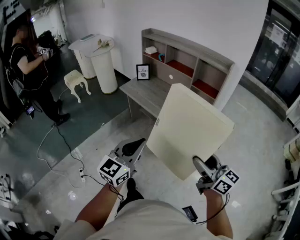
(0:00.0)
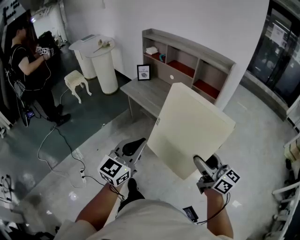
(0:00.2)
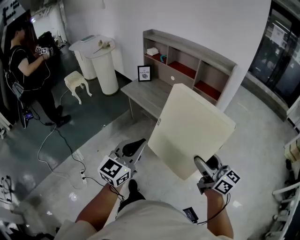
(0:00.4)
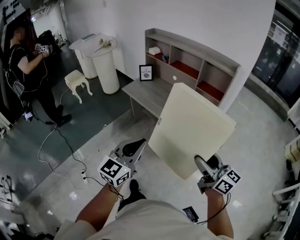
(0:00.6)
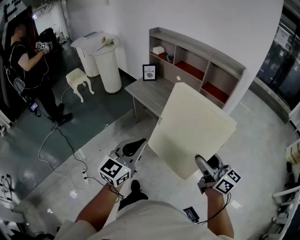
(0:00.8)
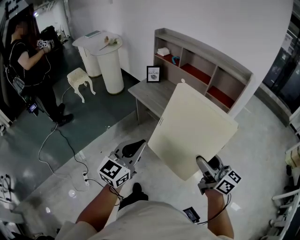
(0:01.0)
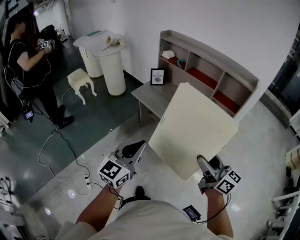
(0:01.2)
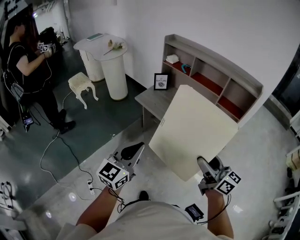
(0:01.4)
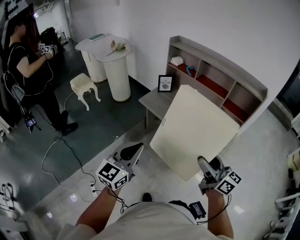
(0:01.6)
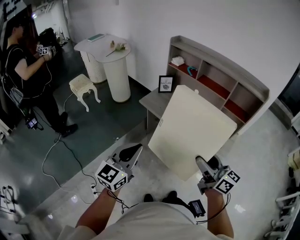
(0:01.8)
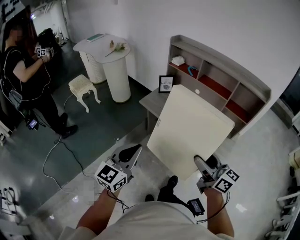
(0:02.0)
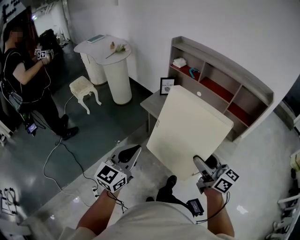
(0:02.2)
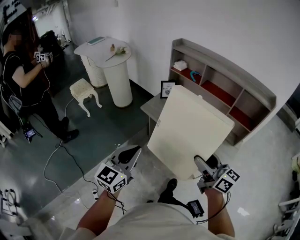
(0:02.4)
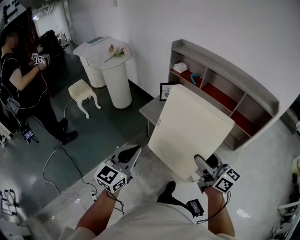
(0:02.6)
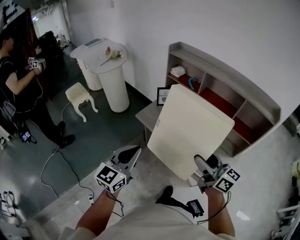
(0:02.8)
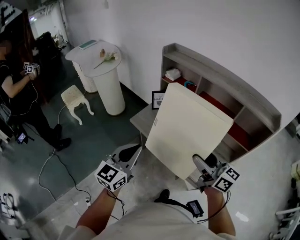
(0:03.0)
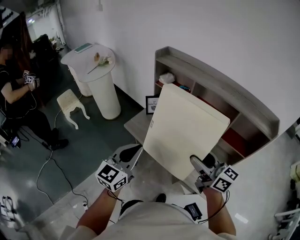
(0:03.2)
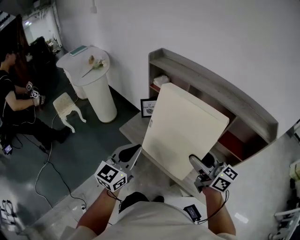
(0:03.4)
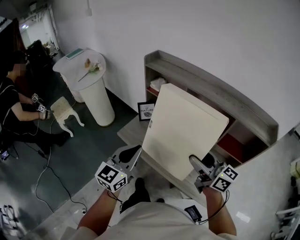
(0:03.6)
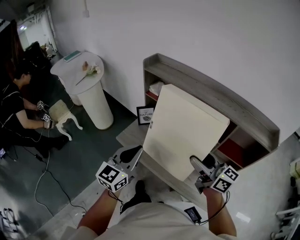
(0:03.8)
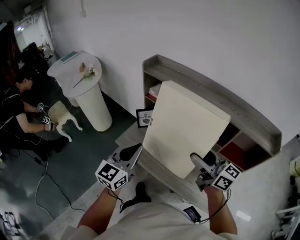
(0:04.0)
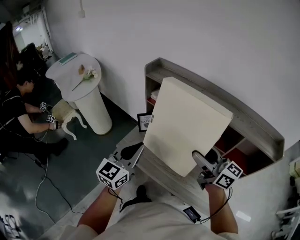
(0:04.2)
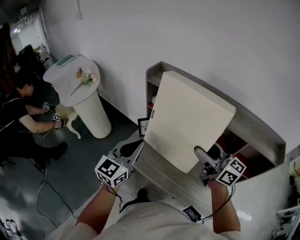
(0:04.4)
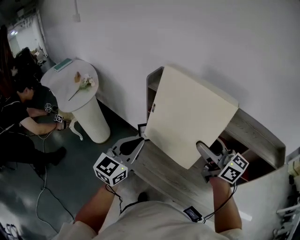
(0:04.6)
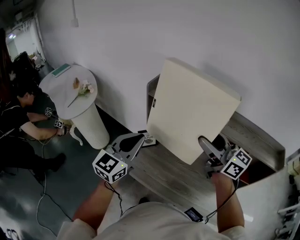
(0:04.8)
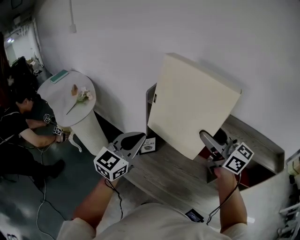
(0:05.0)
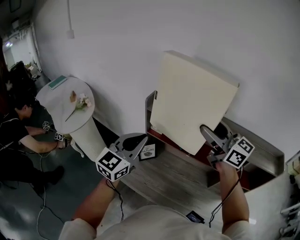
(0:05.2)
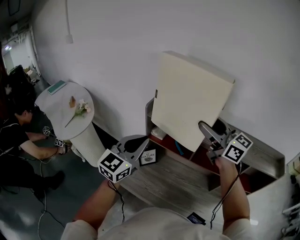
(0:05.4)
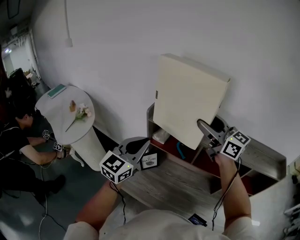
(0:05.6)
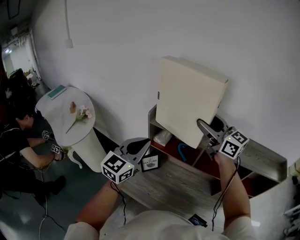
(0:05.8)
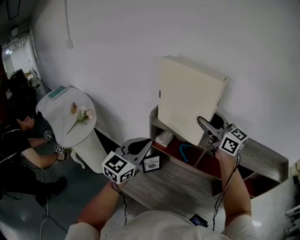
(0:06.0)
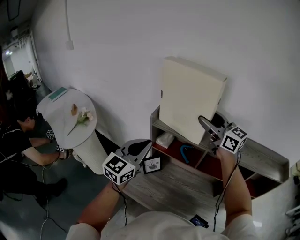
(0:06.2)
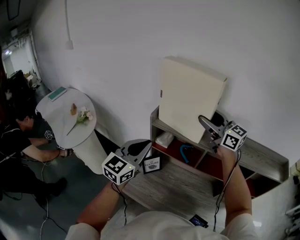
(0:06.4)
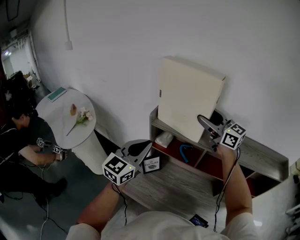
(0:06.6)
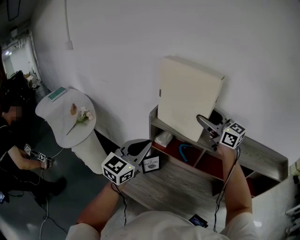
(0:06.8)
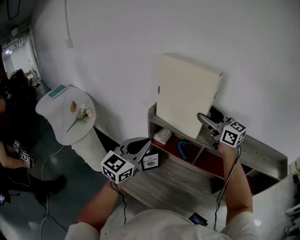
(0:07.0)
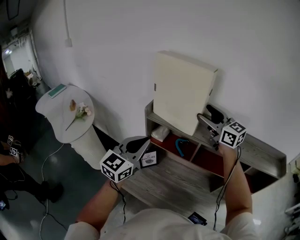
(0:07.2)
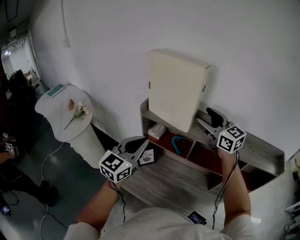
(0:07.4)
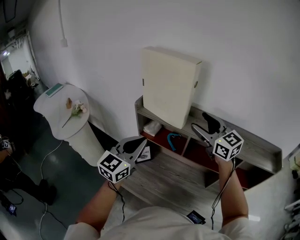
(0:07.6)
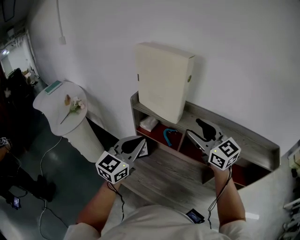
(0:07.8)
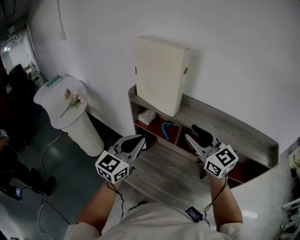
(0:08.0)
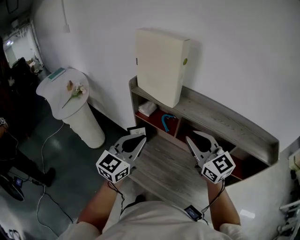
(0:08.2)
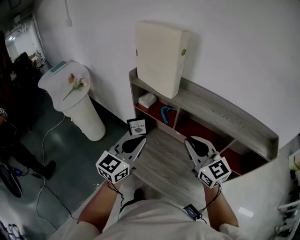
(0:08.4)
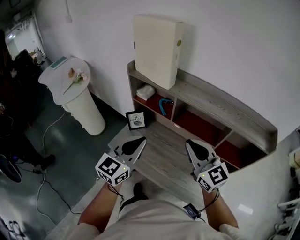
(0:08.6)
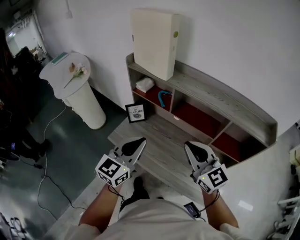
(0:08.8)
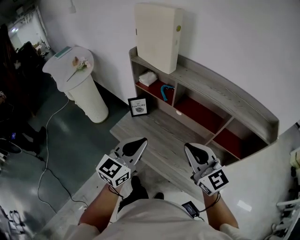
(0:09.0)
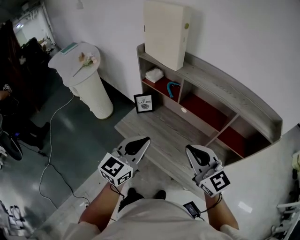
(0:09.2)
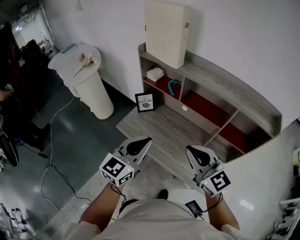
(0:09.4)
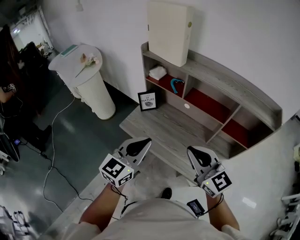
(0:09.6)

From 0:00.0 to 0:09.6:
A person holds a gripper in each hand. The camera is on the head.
From 0:00.0 to 0:01.6: Both grippers move to the left and forward, roughly 30 cm.
From 0:01.6 to 0:03.2: The two grippers go roughly 30 cm forward.
From 0:03.2 to 0:04.8: The left gripper goes roughly 30 cm forward; the right gripper goes about 30 cm forward and upward.
From 0:04.8 to 0:06.4: The right gripper moves forward, some 20 cm; the left gripper heads forward, covering about 10 cm.
From 0:06.4 to 0:08.0: The left gripper is displaced to the right and backward by about 15 cm, while the right gripper heads backward, covering approximately 15 cm, and closes its fingers.
From 0:08.0 to 0:09.6: The grippers both shift backward by roughly 25 cm. The right gripper closes its fingers.

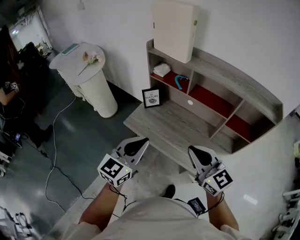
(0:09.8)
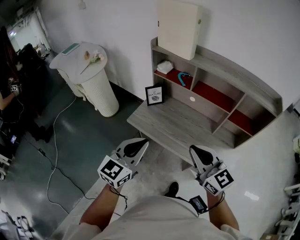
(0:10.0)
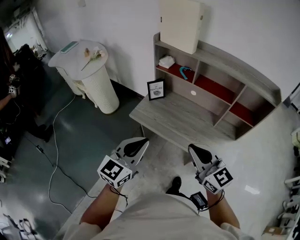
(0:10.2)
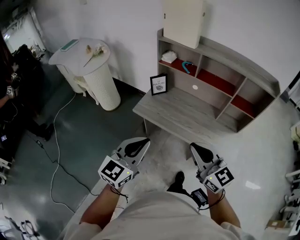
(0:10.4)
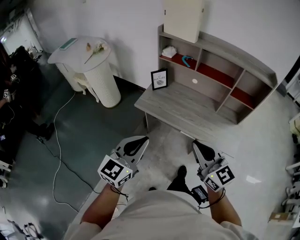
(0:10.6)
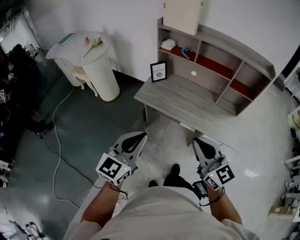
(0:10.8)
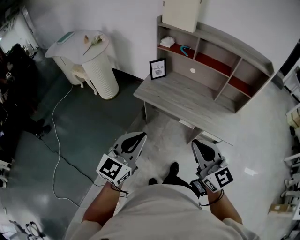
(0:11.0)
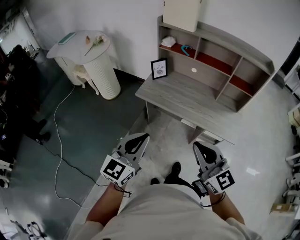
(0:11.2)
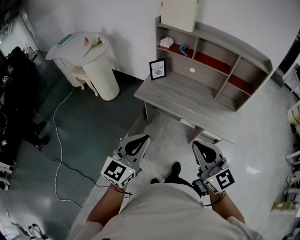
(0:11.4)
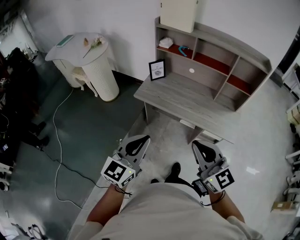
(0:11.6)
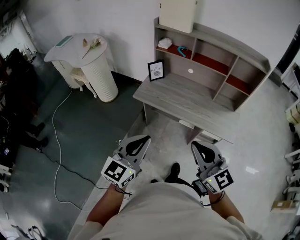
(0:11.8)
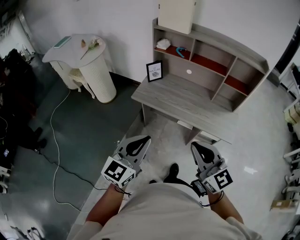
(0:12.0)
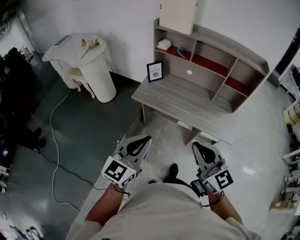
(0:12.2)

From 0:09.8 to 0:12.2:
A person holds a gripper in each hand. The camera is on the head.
From 0:09.8 to 0:11.0: The grippers both shift backward and to the left by about 25 cm.
From 0:11.0 to 0:12.2: The grippers make only small movements.

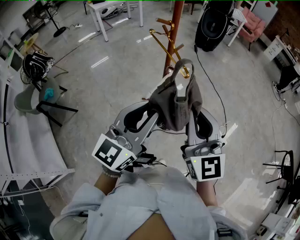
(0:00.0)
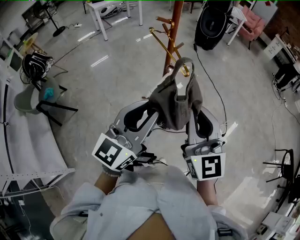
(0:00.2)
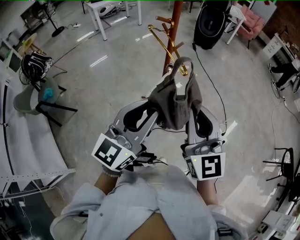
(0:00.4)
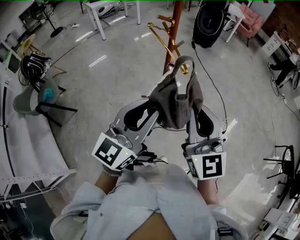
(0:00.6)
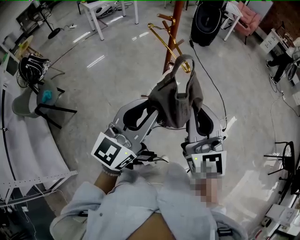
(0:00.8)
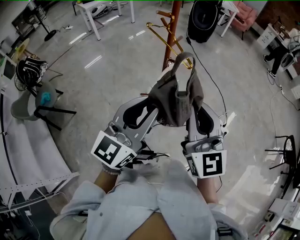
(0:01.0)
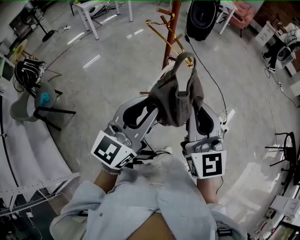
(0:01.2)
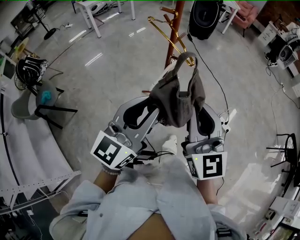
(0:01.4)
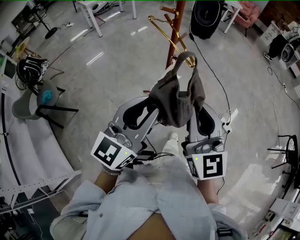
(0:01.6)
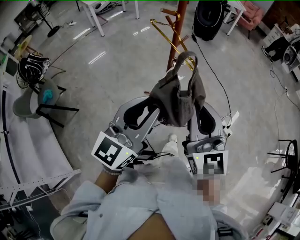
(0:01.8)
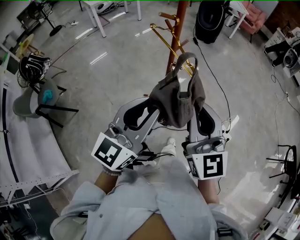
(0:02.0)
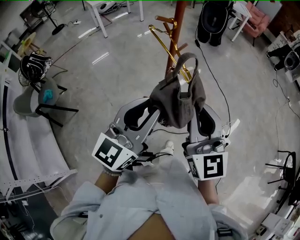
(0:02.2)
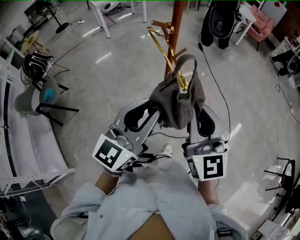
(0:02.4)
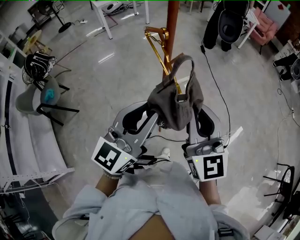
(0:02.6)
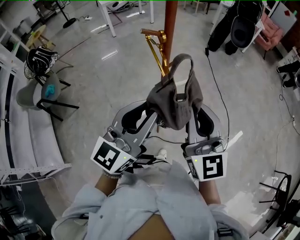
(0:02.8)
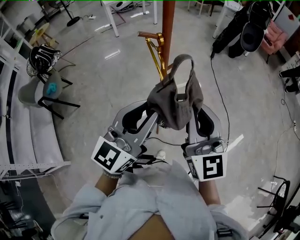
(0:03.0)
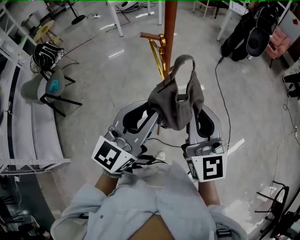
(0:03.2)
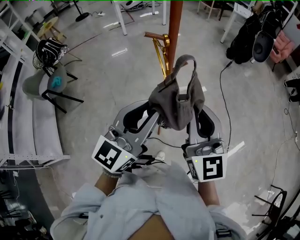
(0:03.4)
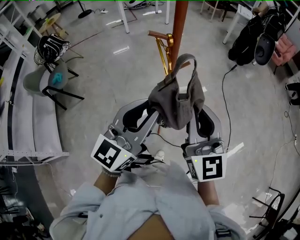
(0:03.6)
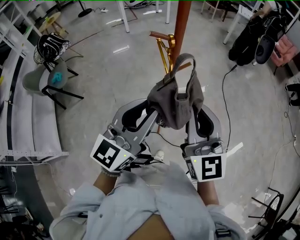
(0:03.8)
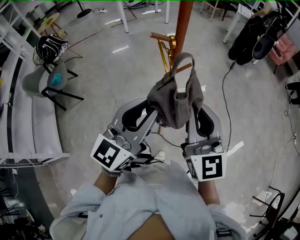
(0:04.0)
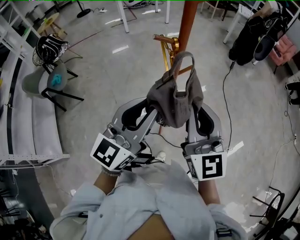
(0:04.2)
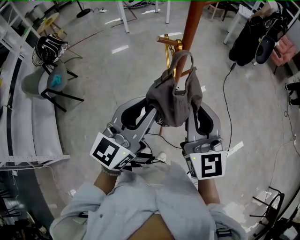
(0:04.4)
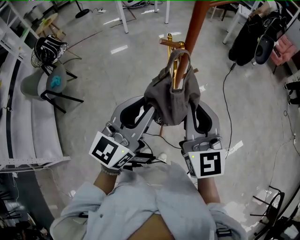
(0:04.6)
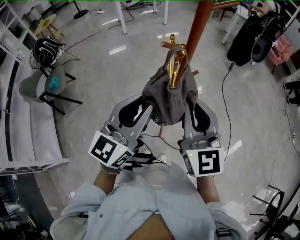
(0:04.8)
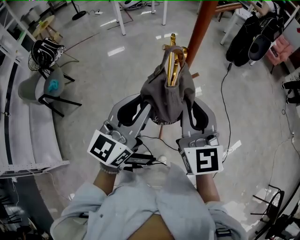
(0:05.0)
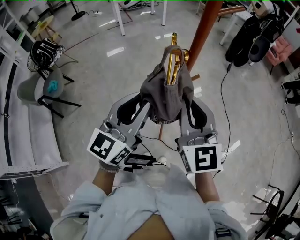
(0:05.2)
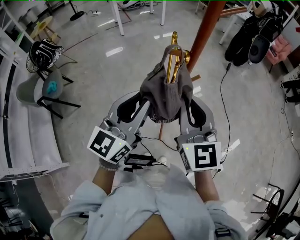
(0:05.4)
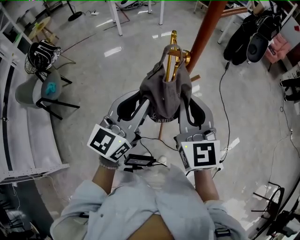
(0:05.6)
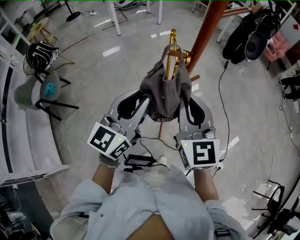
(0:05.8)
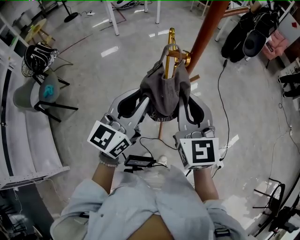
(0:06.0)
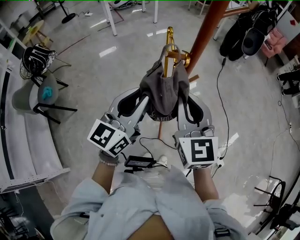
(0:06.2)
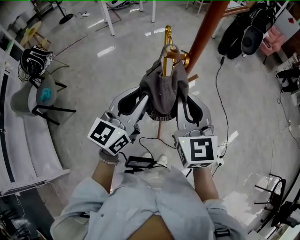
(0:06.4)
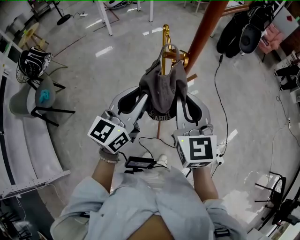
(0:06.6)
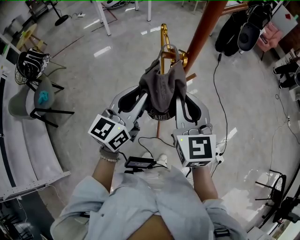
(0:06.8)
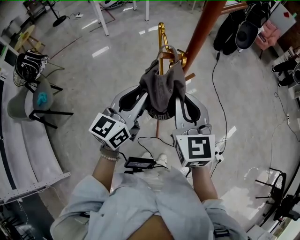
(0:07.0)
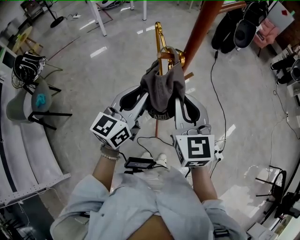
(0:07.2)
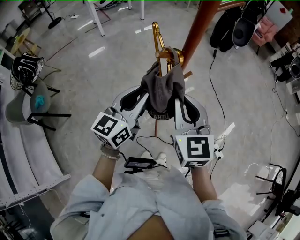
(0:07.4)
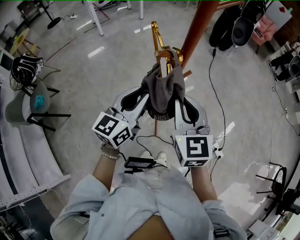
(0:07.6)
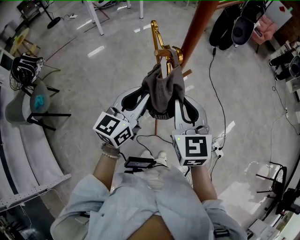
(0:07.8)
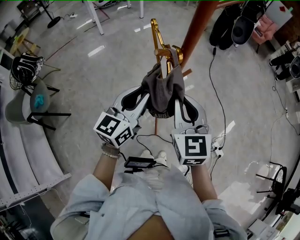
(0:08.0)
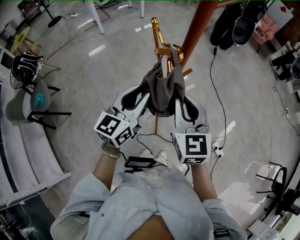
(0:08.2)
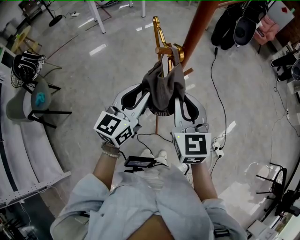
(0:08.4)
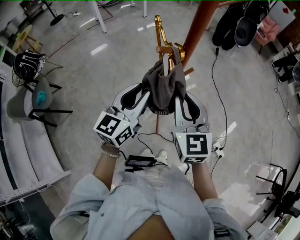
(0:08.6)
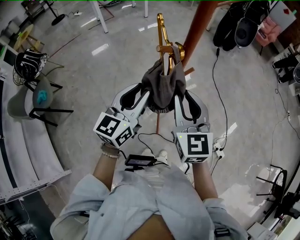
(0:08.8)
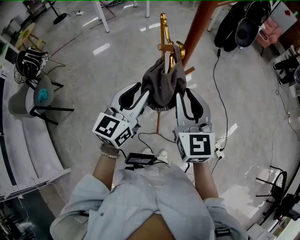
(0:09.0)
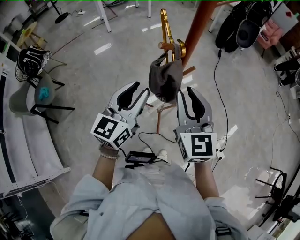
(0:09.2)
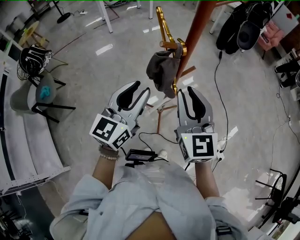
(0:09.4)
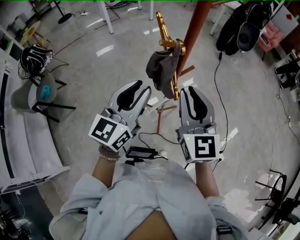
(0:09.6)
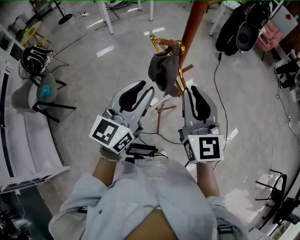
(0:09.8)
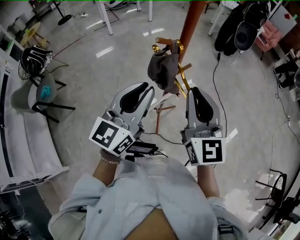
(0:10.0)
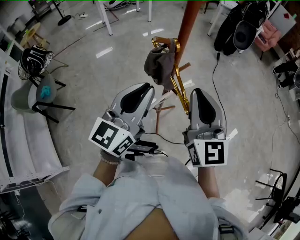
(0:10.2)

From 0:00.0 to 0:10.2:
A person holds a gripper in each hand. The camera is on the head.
From 0:00.0 to 0:01.4: The right gripper changes place by approximately 5 cm.
From 0:01.4 to 0:03.0: Both grippers move forward and to the right, roughly 20 cm.
From 0:03.0 to 0:04.4: The right gripper shifts by approximately 5 cm. The left gripper moves roughly 5 cm.
From 0:04.4 to 0:05.8: The two grippers go about 10 cm forward and to the left.
From 0:05.8 to 0:07.2: The left gripper heads forward and downward, covering about 10 cm.
From 0:07.2 to 0:08.8: There are only small adjustments of the grippers.
From 0:08.8 to 0:10.2: The right gripper is displaced upward, backward and to the right by approximately 10 cm, while the left gripper moves upward and backward, roughly 10 cm.

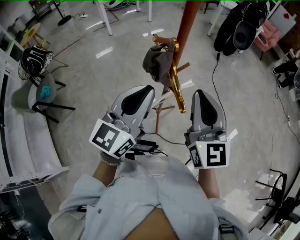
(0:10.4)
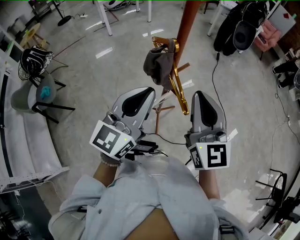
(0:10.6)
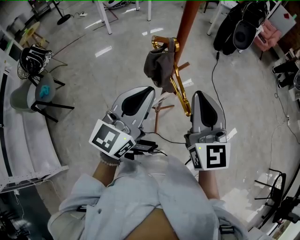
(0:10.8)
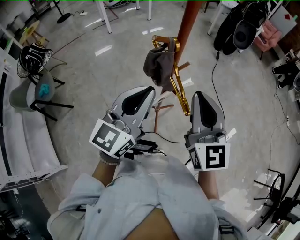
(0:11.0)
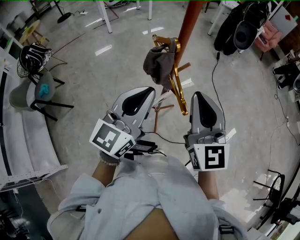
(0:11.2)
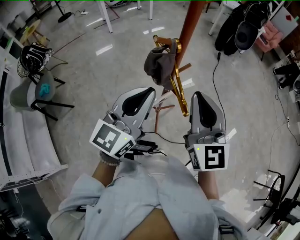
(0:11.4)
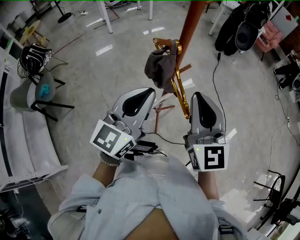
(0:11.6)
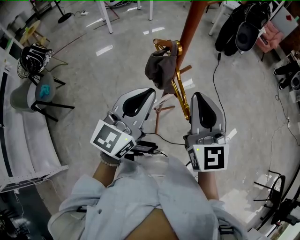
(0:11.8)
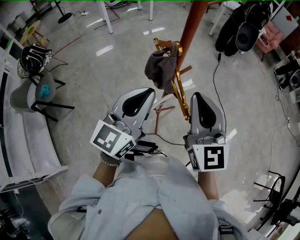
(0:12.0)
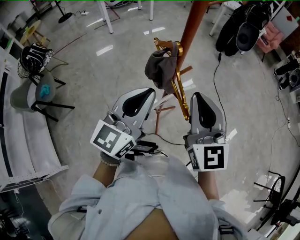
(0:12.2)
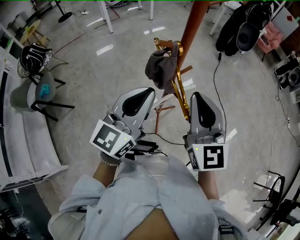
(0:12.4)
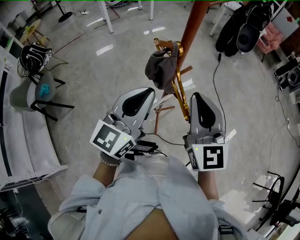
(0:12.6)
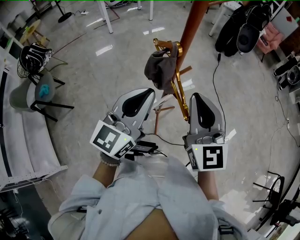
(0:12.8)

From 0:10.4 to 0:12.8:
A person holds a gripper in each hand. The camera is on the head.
From 0:10.4 to 0:11.6: The grippers make only small movements.
From 0:11.6 to 0:12.8: Both grippers stay about where they are.
